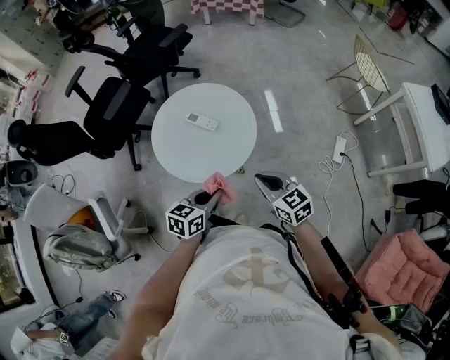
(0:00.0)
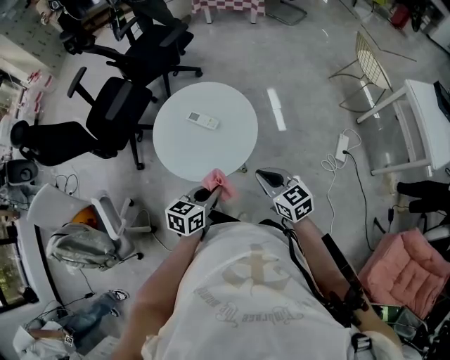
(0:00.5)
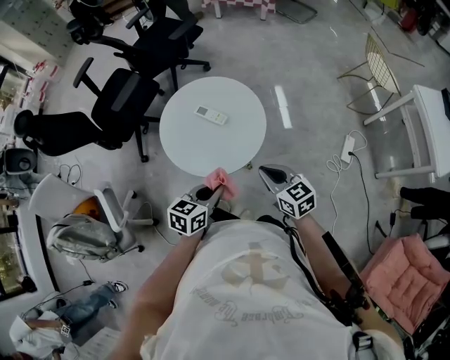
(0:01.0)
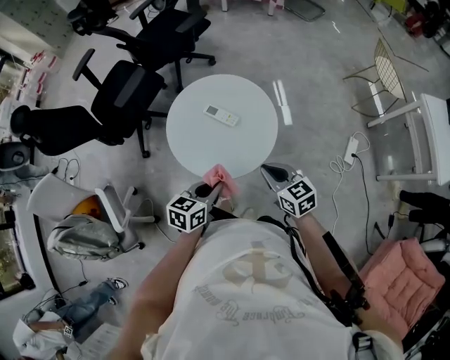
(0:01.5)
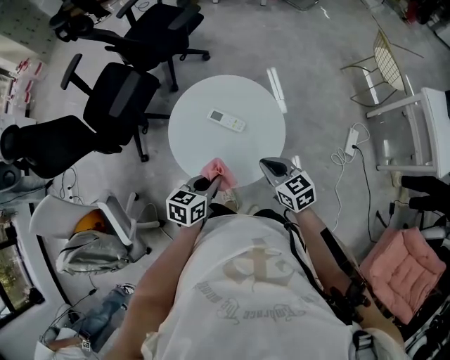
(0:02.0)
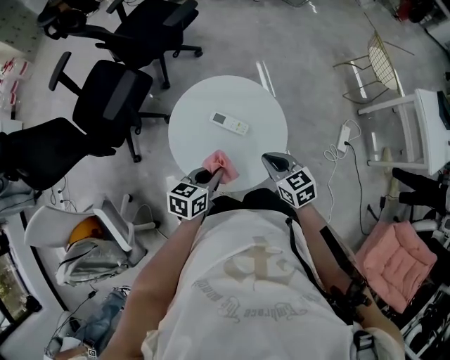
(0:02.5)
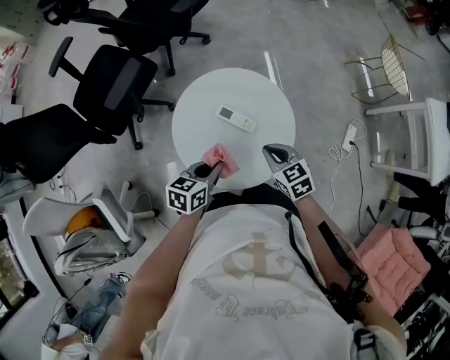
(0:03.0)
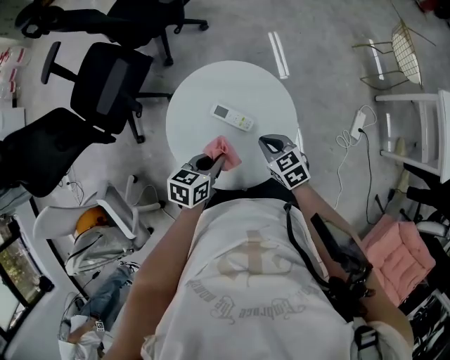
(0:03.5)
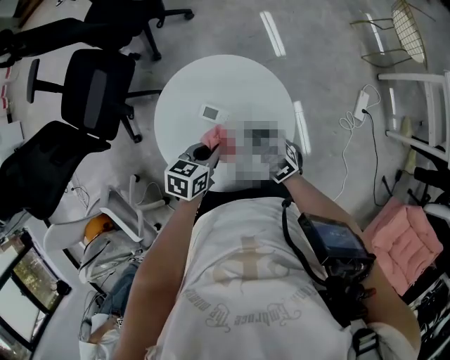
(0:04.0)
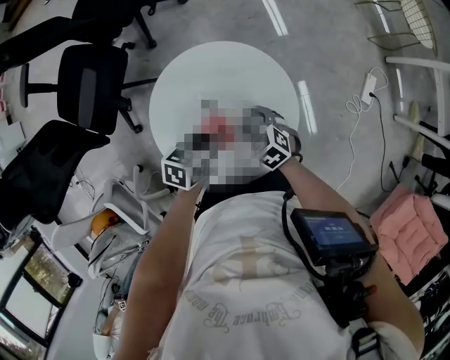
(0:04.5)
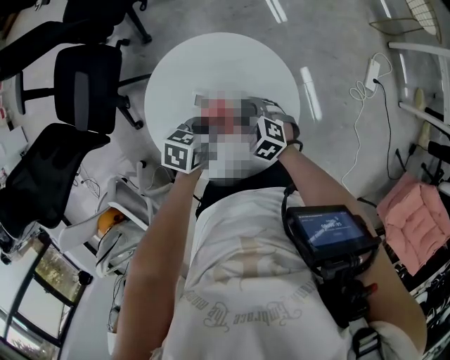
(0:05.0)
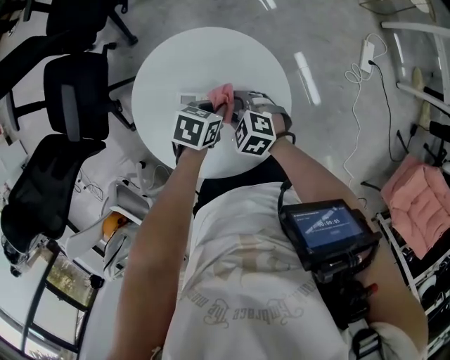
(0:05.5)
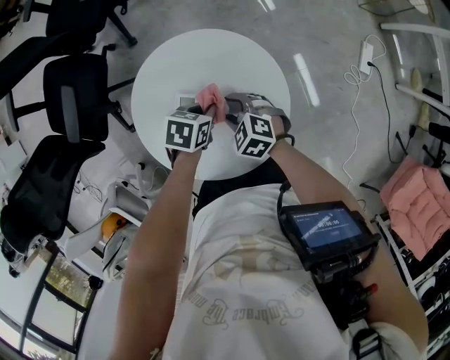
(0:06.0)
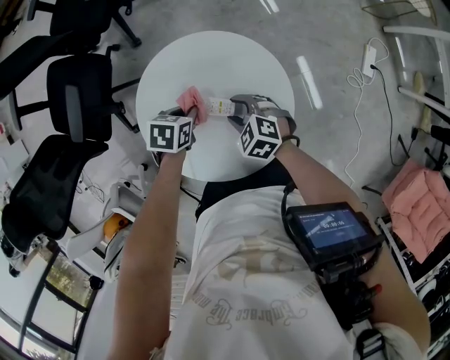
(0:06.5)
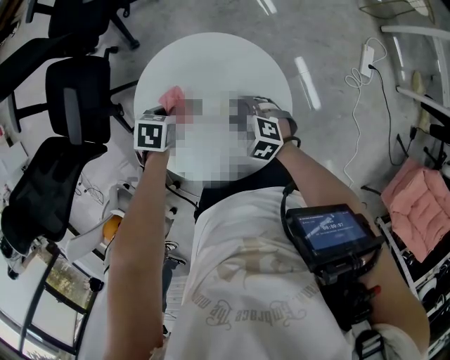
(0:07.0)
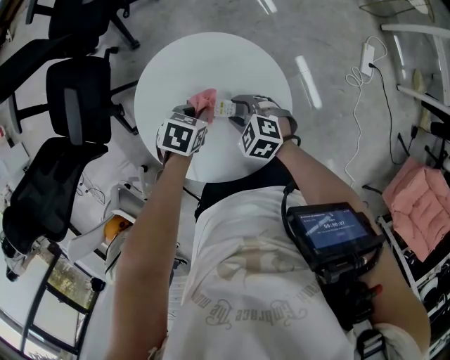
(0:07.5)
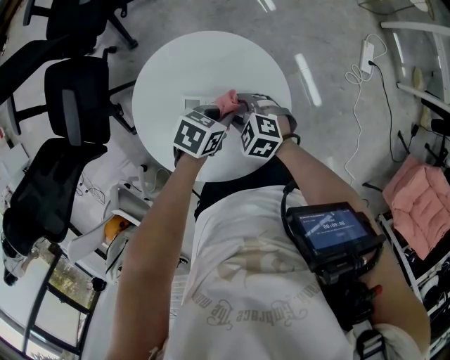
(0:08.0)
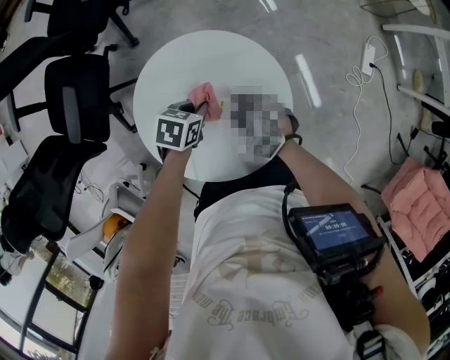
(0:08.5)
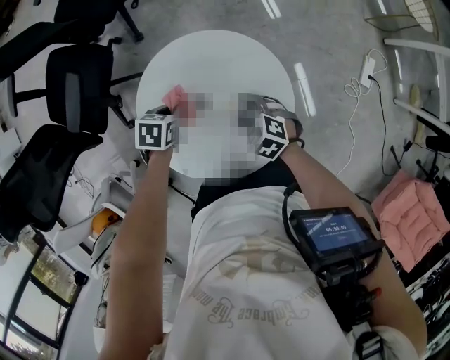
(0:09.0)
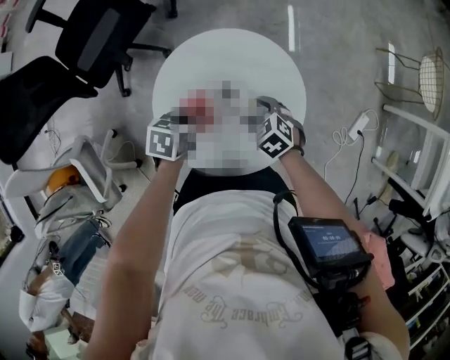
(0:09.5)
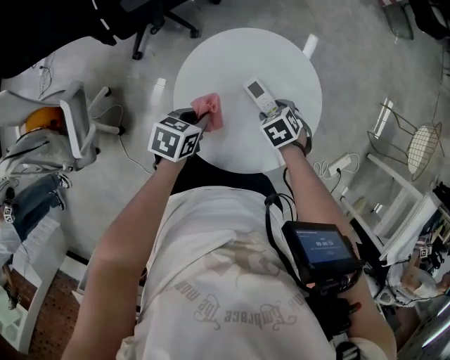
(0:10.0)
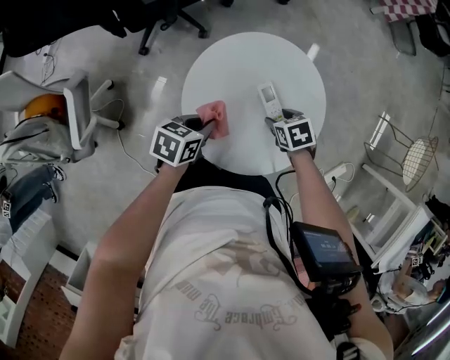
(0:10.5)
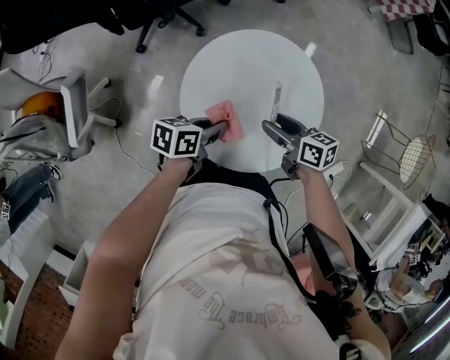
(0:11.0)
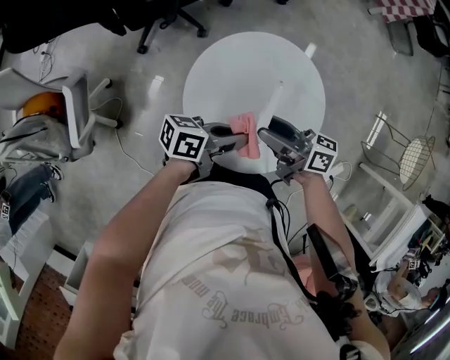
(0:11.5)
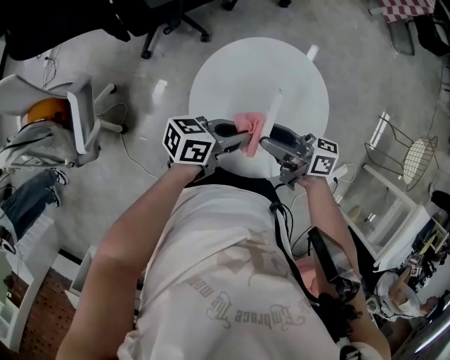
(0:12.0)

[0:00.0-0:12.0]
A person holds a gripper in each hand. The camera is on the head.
0:00.0 to 0:02.0: The right gripper travels forward and to the left by some 15 cm, while the left gripper is displaced to the left and forward by about 15 cm.
0:02.0 to 0:04.0: The two grippers go some 15 cm forward and downward. The right gripper changes its angle by some 20 degrees.
0:04.0 to 0:06.0: The left gripper shifts some 10 cm downward, and changes its angle by about 20 degrees; the right gripper shifts approximately 5 cm downward, and opens up.
0:08.0 to 0:10.0: The right gripper changes its angle by some 30 degrees. The left gripper changes place by some 20 cm, and rotates about 50 degrees.
0:10.0 to 0:12.0: The right gripper is displaced upward by roughly 20 cm, and points its fingers roughly 80 degrees further upward; the left gripper heads upward, covering some 10 cm, and tips its fingers upward by approximately 40 degrees.

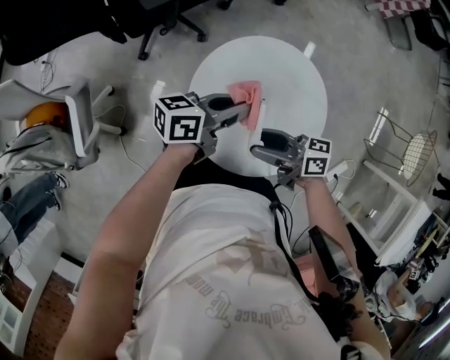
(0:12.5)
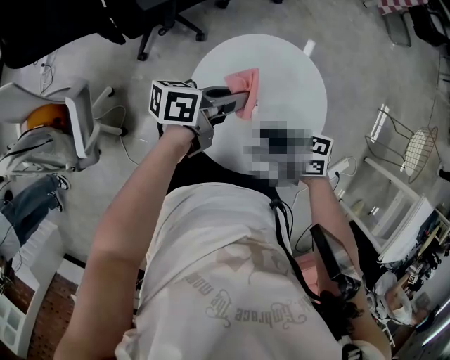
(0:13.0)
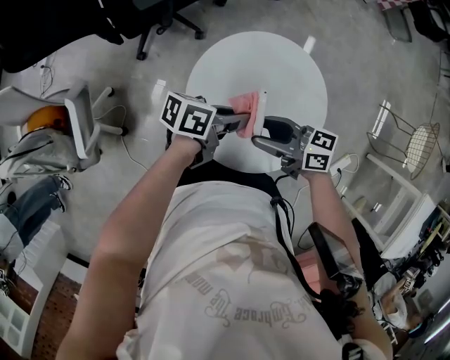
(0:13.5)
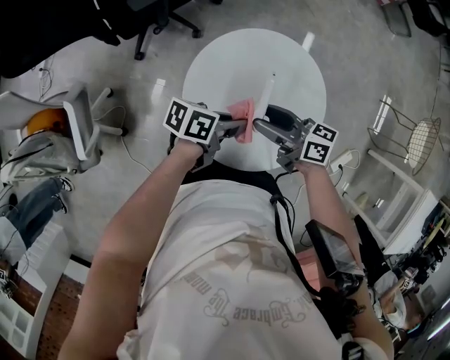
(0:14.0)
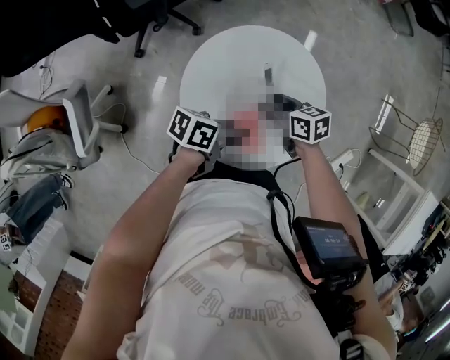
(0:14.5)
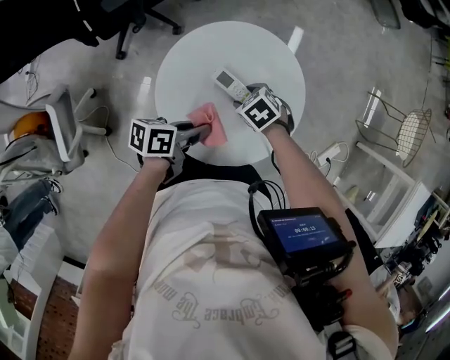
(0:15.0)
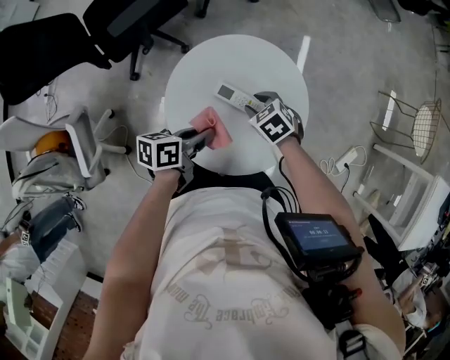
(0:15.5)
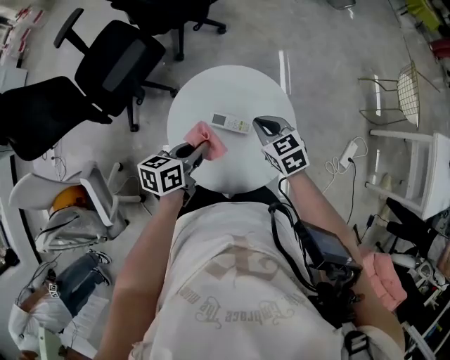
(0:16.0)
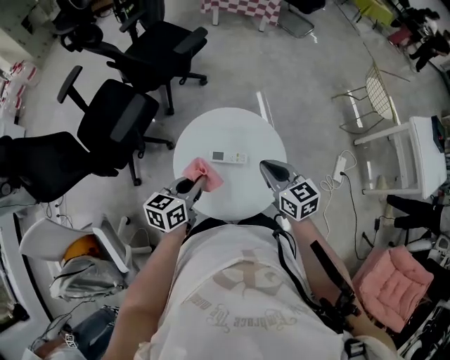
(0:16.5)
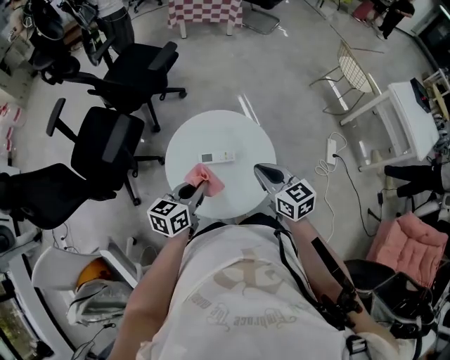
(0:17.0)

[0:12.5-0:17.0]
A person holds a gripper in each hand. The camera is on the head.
0:12.5 to 0:14.5: The right gripper travels downward by some 10 cm, and points its fingers about 40 degrees further downward; the left gripper changes place by roughly 15 cm, and rotates approximately 30 degrees.
0:14.5 to 0:17.0: The right gripper shifts some 20 cm upward, swivels roughly 50 degrees, and closes its fingers; the left gripper shifts roughly 10 cm upward, and rolls clockwise, seen from behind, by about 40 degrees.

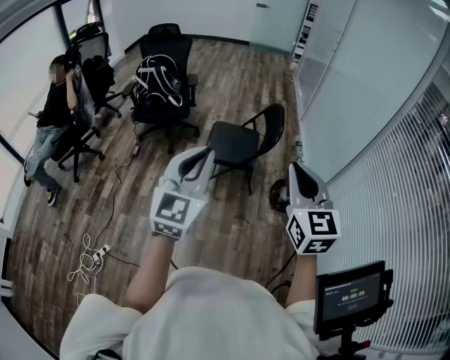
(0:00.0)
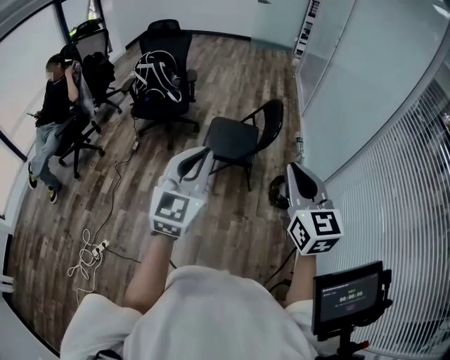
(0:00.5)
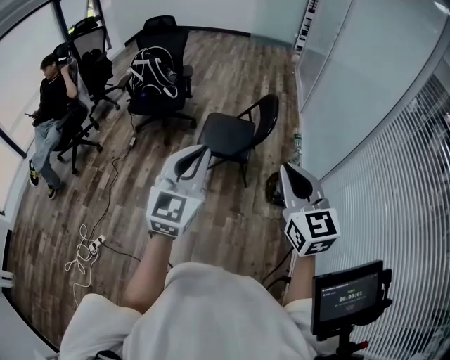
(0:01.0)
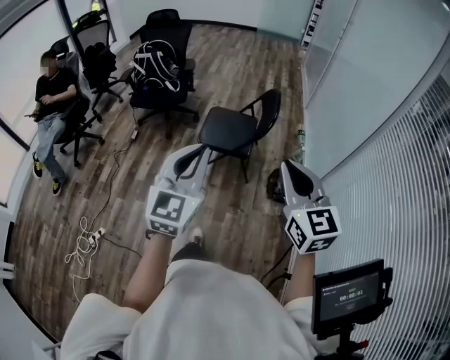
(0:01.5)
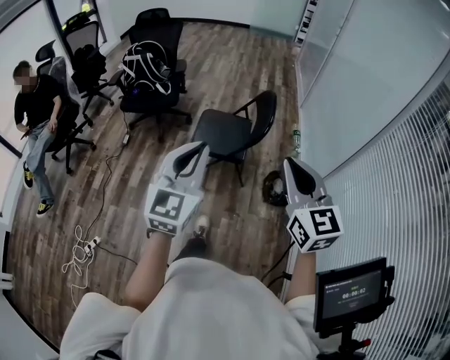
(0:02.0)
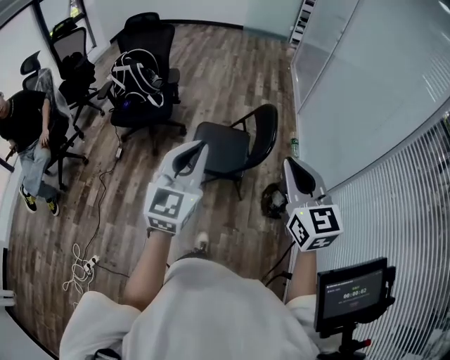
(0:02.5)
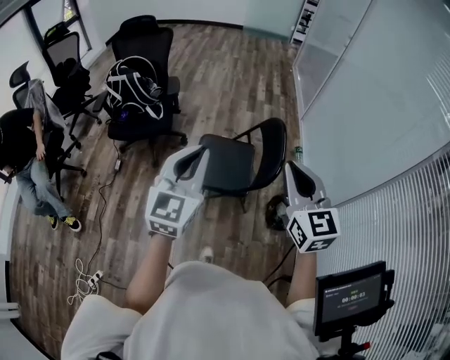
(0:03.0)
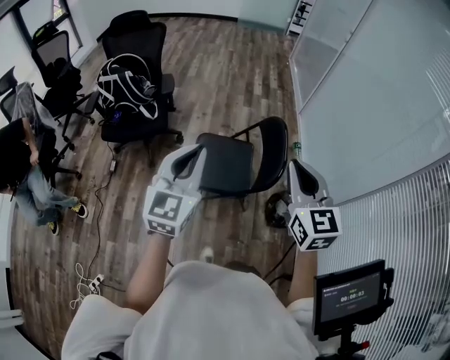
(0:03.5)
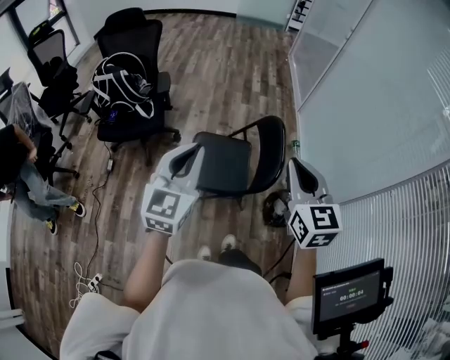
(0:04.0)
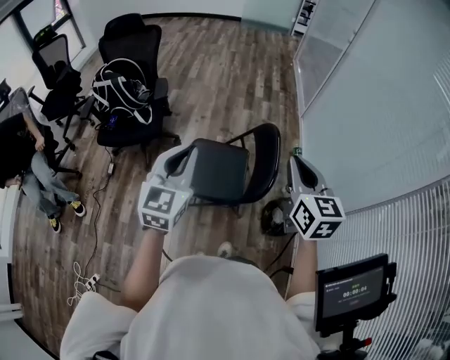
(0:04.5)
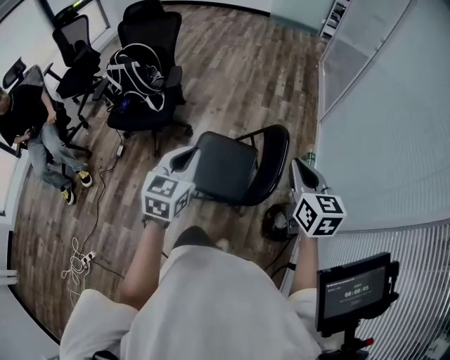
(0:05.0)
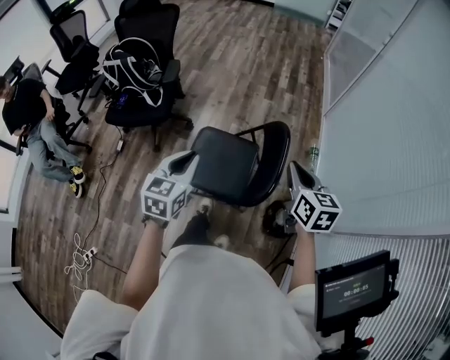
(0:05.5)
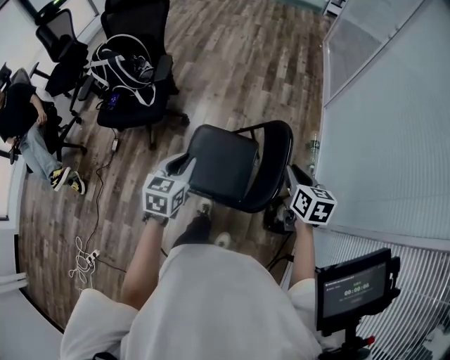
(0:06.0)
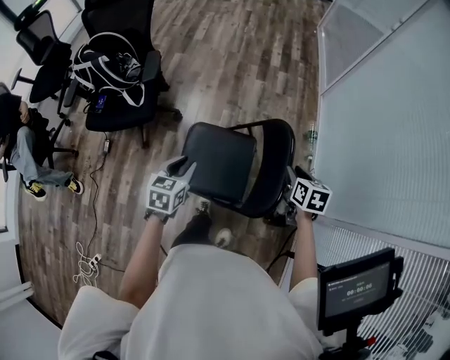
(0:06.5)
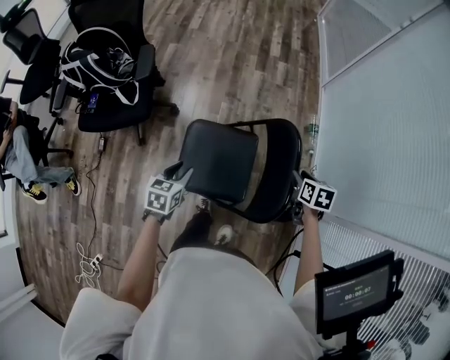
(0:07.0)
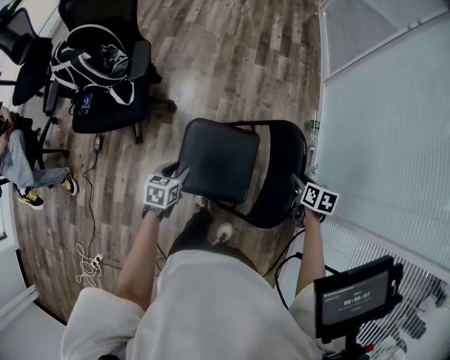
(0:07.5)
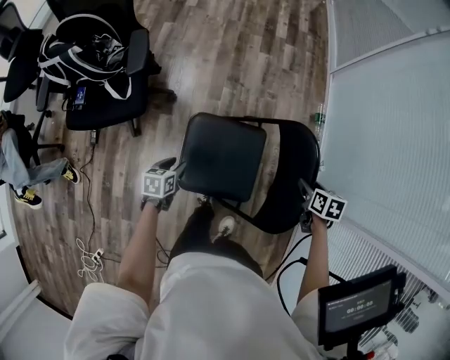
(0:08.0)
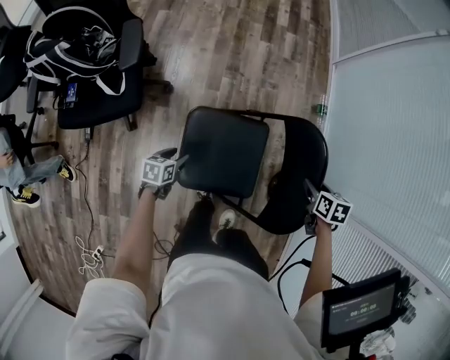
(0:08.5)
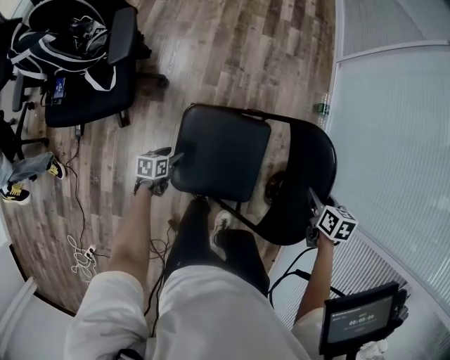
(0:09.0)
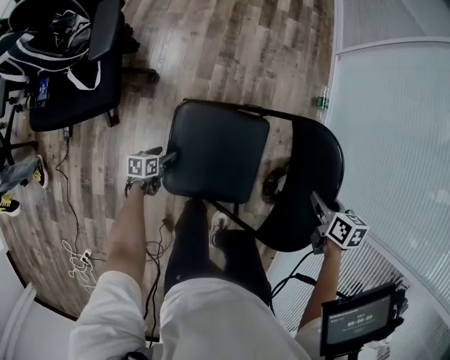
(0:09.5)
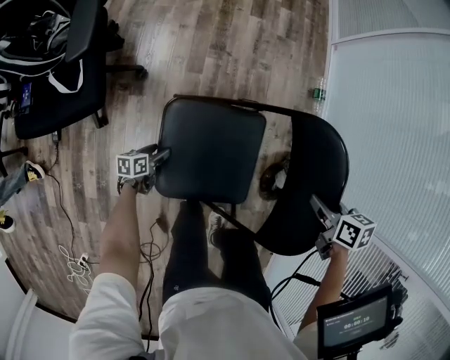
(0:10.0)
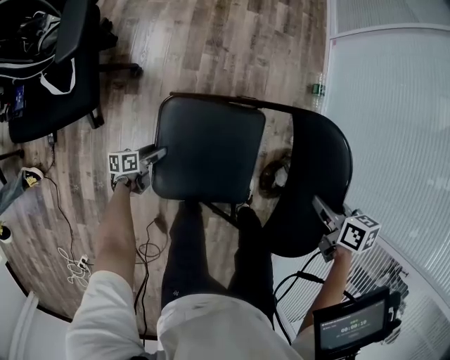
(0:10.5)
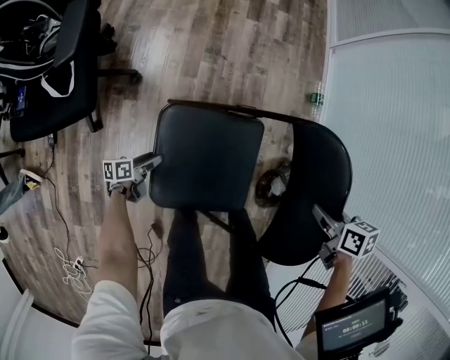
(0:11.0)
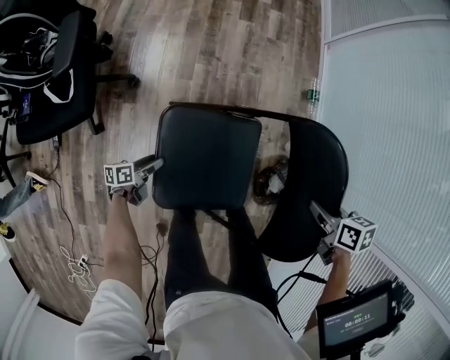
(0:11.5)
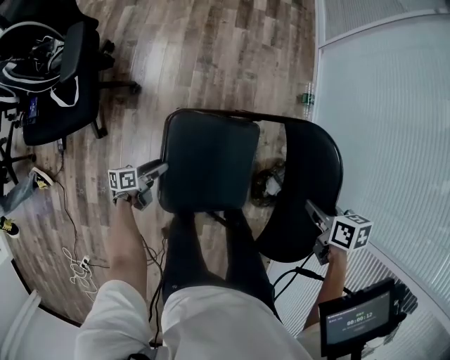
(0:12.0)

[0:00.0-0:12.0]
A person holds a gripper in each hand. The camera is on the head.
0:00.0 to 0:02.0: The right gripper is displaced to the right and downward by about 10 cm, while the left gripper is displaced to the right, downward and forward by about 10 cm.
0:02.0 to 0:04.0: The two grippers go about 30 cm forward.
0:04.0 to 0:06.0: The left gripper shifts about 20 cm downward and forward, and turns by approximately 30 degrees; the right gripper heads downward, forward and to the right, covering approximately 30 cm, and rotates approximately 30 degrees.
0:06.0 to 0:08.0: The right gripper shifts roughly 20 cm downward, swivels some 30 degrees, and opens up. The left gripper heads downward, covering some 30 cm, and rotates about 30 degrees.
0:08.0 to 0:10.0: The right gripper closes; the left gripper is displaced downward by approximately 20 cm, changes its angle by approximately 20 degrees, and opens up.
0:10.0 to 0:12.0: The right gripper is displaced to the right by roughly 5 cm; the left gripper heads upward and to the right, covering roughly 15 cm.
